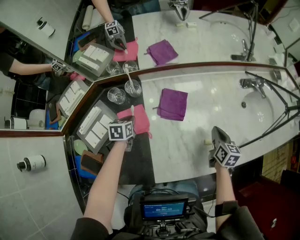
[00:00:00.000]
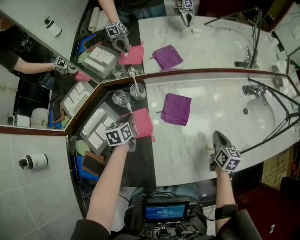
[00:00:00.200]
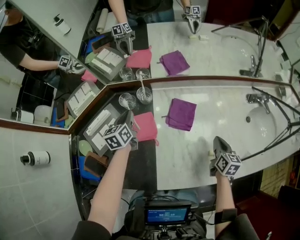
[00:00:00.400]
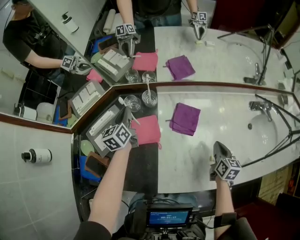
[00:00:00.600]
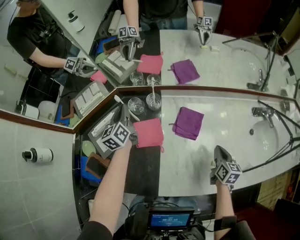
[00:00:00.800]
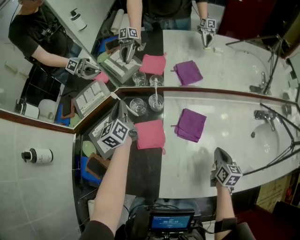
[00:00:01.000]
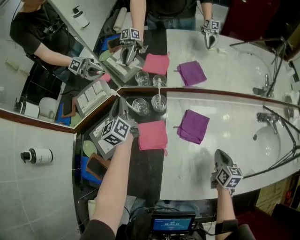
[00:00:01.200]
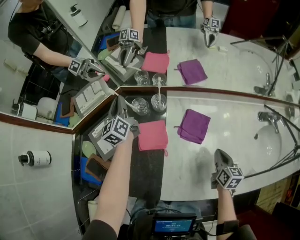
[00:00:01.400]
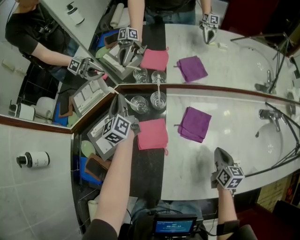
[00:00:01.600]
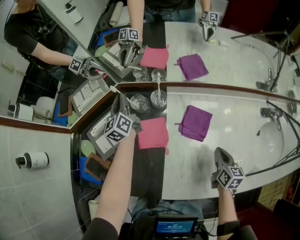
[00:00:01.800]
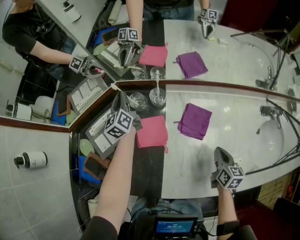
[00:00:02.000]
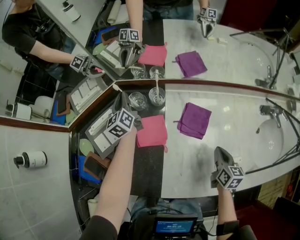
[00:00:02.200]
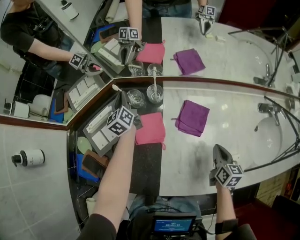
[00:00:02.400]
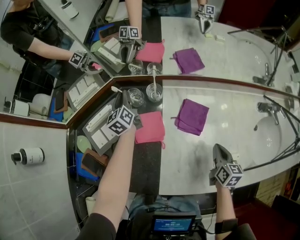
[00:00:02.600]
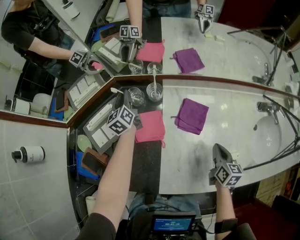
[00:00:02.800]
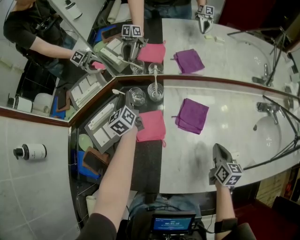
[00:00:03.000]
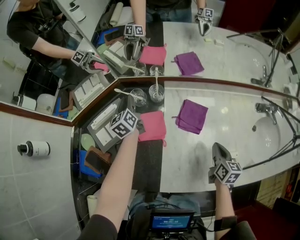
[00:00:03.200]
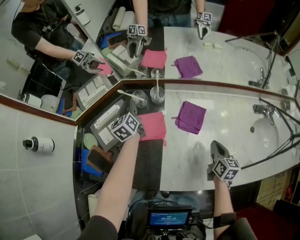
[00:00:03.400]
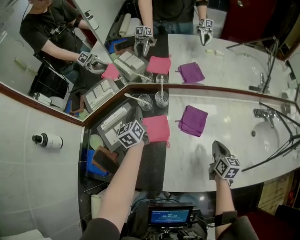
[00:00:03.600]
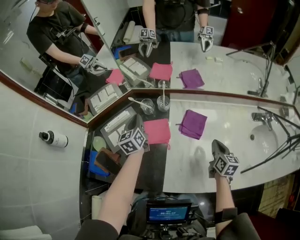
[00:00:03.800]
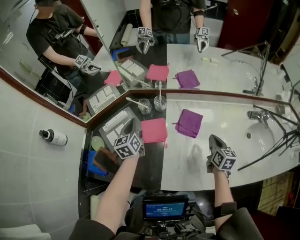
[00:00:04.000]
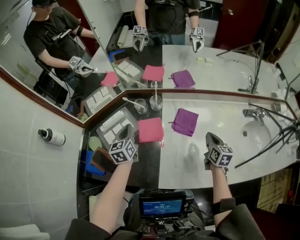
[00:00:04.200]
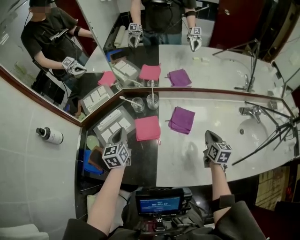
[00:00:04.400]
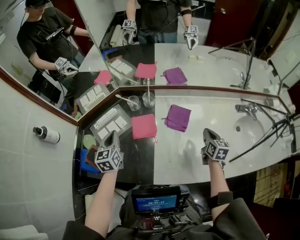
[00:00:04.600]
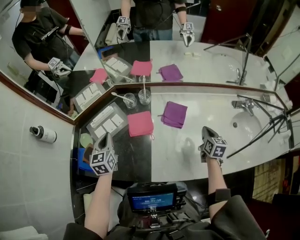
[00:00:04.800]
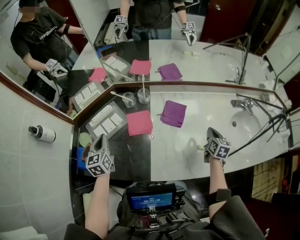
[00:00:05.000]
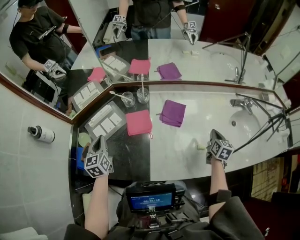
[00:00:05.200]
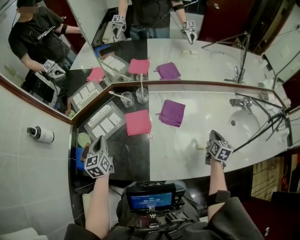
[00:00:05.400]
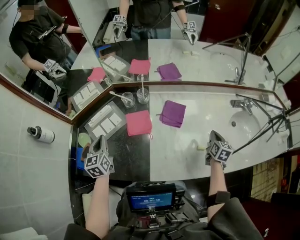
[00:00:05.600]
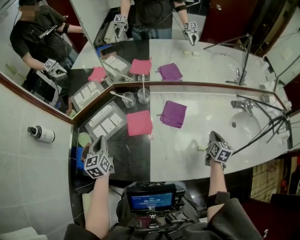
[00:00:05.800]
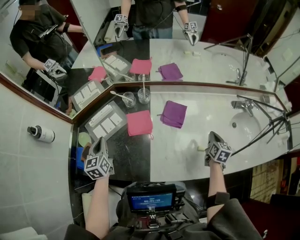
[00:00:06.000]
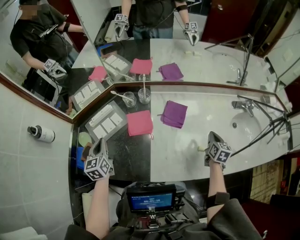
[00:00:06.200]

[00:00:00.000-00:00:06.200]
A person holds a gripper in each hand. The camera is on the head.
00:00:00.000 to 00:00:01.600: The right gripper moves approximately 10 cm; the left gripper ends up approximately 25 cm from where it was, and points its fingers approximately 50 degrees further upward.
00:00:01.600 to 00:00:03.200: The left gripper heads downward, covering about 5 cm, and opens.
00:00:03.200 to 00:00:04.600: The left gripper goes some 25 cm backward and upward, swivels about 20 degrees, and closes, while the right gripper shifts some 5 cm upward.
00:00:04.600 to 00:00:06.200: The right gripper goes approximately 5 cm to the right, while the left gripper shifts by some 5 cm.

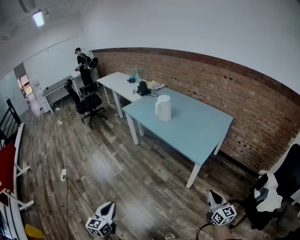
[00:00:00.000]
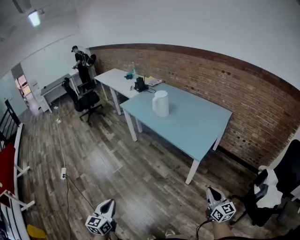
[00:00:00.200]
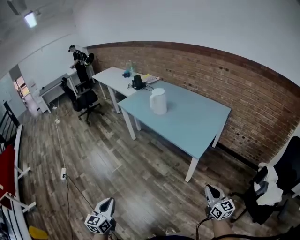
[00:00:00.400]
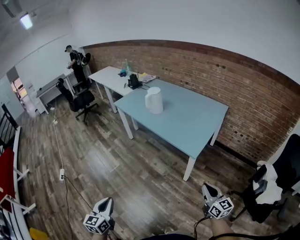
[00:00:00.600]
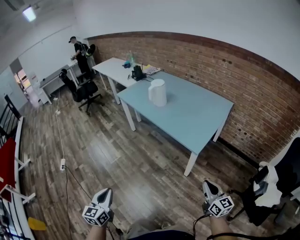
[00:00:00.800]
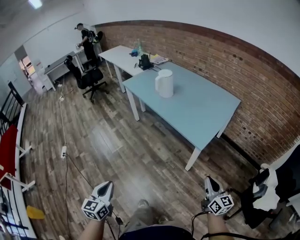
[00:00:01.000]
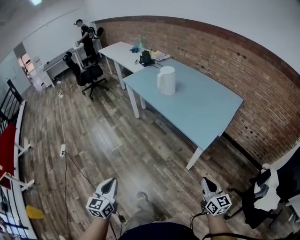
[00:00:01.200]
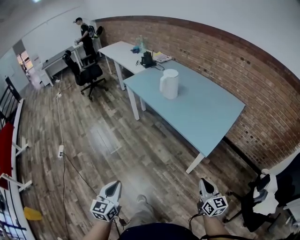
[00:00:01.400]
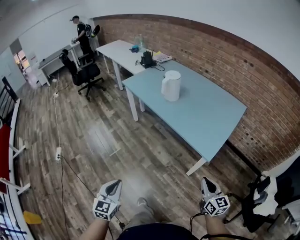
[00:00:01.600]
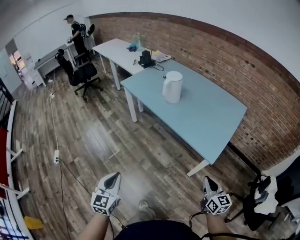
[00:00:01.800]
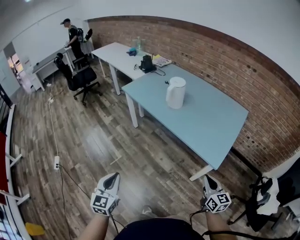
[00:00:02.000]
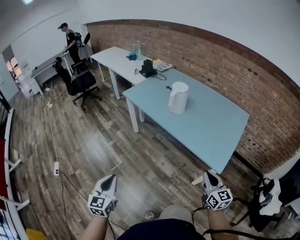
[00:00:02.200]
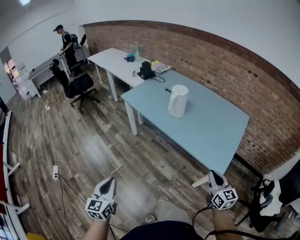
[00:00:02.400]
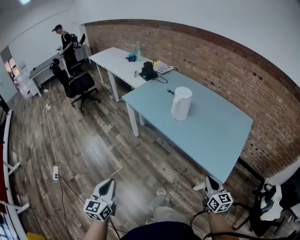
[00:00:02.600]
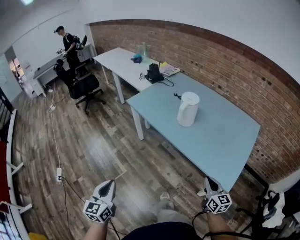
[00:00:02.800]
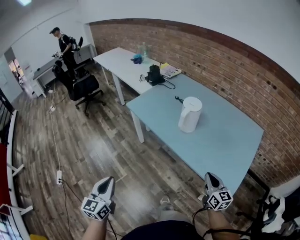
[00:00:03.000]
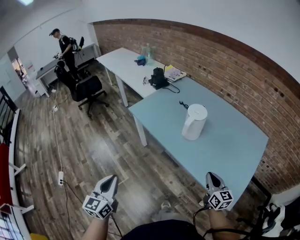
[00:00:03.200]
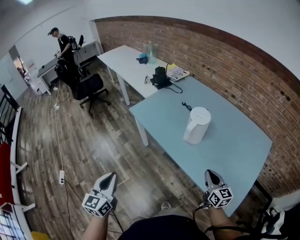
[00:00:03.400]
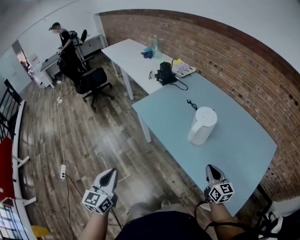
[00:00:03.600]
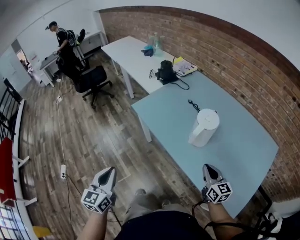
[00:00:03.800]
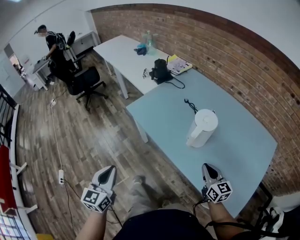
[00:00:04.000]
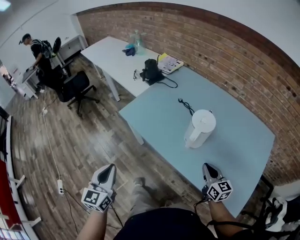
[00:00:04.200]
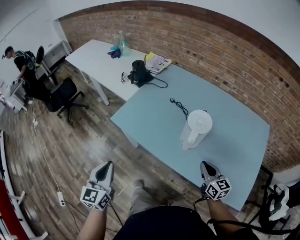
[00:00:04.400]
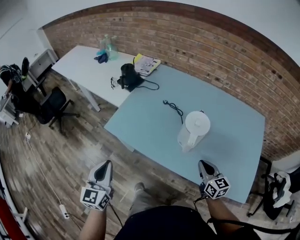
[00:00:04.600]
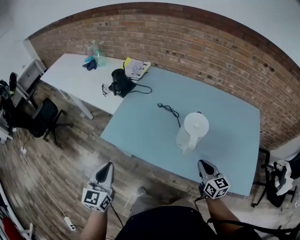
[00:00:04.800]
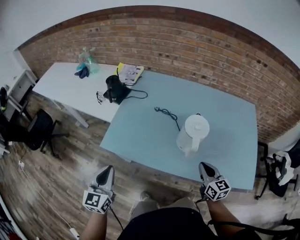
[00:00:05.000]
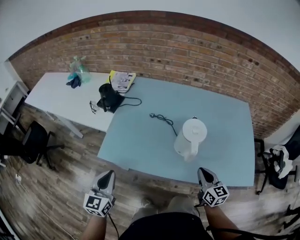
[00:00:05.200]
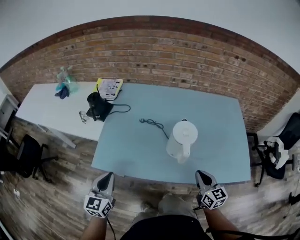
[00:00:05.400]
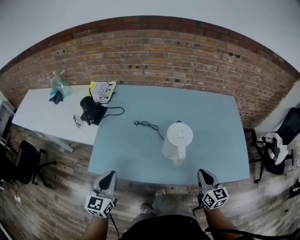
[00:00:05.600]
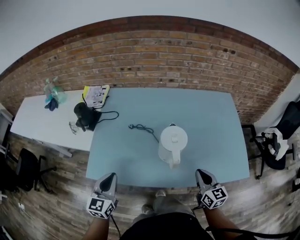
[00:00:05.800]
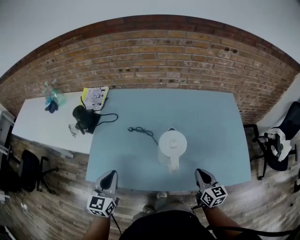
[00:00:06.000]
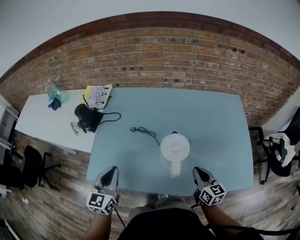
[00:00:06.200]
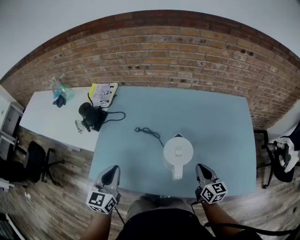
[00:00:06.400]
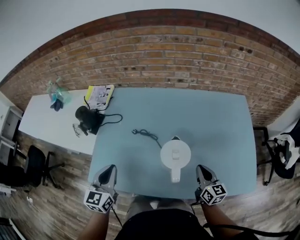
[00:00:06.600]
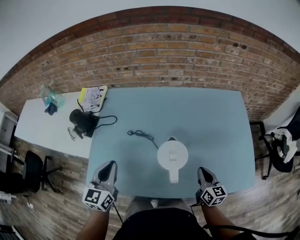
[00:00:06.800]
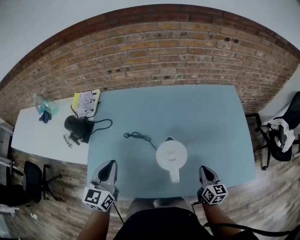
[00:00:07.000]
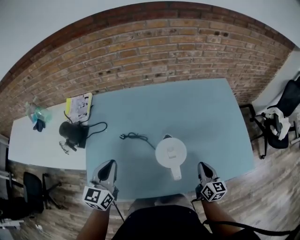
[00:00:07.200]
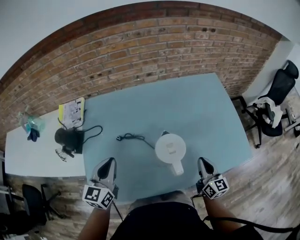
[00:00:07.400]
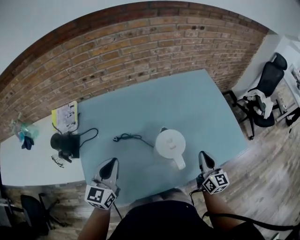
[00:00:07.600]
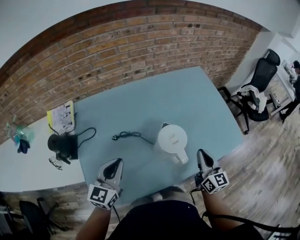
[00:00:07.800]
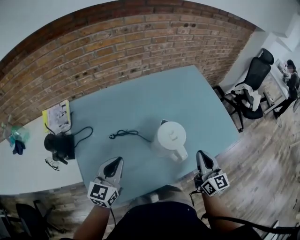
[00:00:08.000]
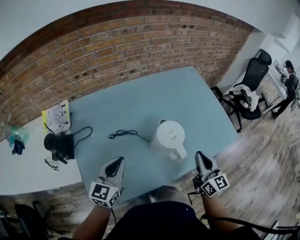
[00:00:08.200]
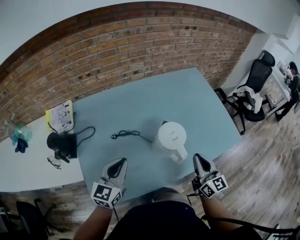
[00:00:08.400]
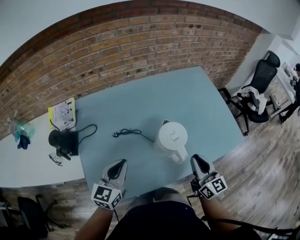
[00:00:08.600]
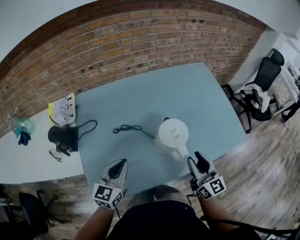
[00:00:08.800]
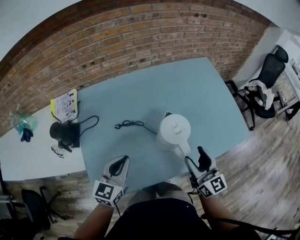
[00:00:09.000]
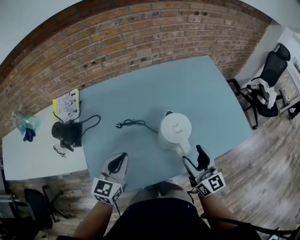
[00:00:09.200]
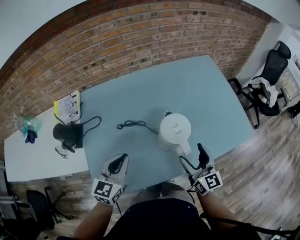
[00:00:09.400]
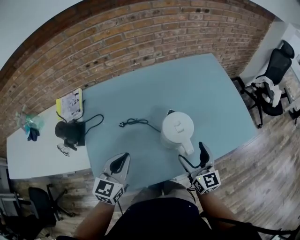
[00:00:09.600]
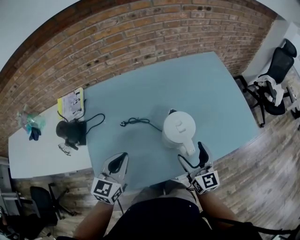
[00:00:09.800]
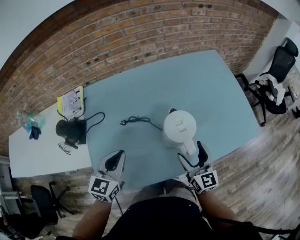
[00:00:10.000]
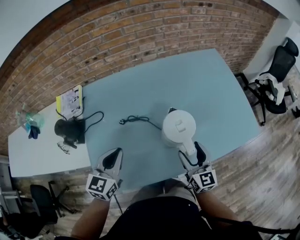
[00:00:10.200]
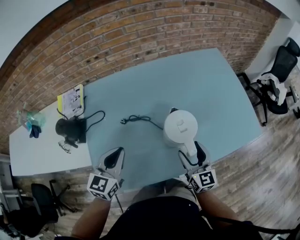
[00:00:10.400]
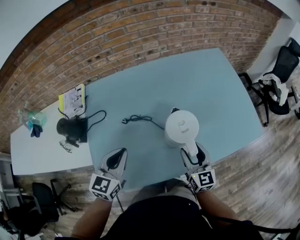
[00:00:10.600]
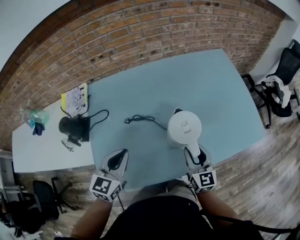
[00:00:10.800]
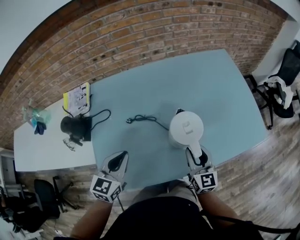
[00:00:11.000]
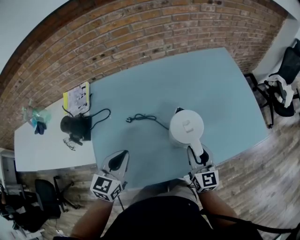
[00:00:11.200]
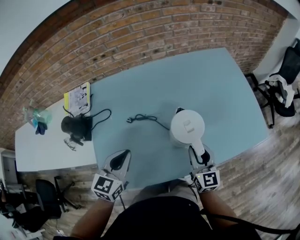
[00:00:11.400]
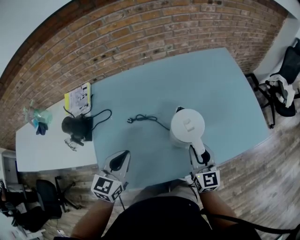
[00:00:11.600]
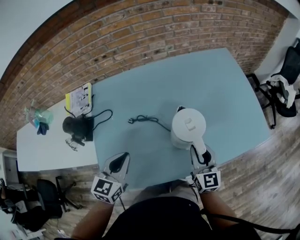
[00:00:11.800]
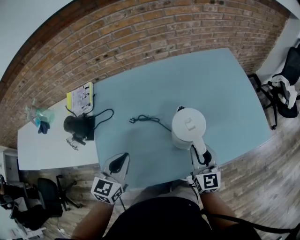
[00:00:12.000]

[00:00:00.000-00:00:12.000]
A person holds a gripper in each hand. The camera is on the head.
00:00:00.000 to 00:00:01.600: Both grippers move forward, roughly 15 cm.
00:00:01.600 to 00:00:03.000: The right gripper goes about 30 cm forward. Meanwhile the left gripper moves forward and to the left, roughly 35 cm.
00:00:03.000 to 00:00:04.400: The two grippers go some 25 cm forward.
00:00:04.400 to 00:00:06.000: The right gripper turns by about 30 degrees. Meanwhile the left gripper shifts by some 25 cm, and changes its angle by approximately 40 degrees.
00:00:06.000 to 00:00:07.600: The left gripper ends up some 15 cm from where it was, and changes its angle by approximately 20 degrees, while the right gripper rotates about 30 degrees.
00:00:07.600 to 00:00:09.000: The right gripper shifts about 10 cm to the left and backward, and opens up. The left gripper ends up some 5 cm from where it was.
00:00:09.000 to 00:00:10.400: The right gripper shifts approximately 10 cm downward.
00:00:10.400 to 00:00:12.000: The right gripper closes.

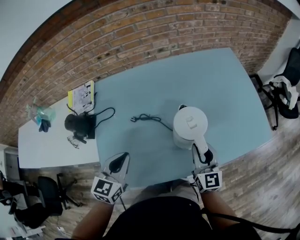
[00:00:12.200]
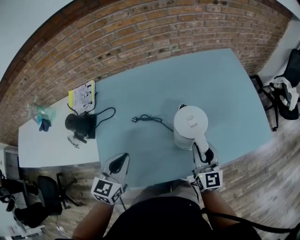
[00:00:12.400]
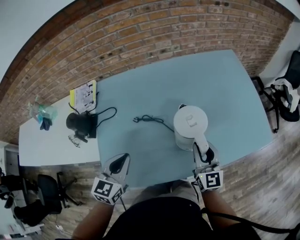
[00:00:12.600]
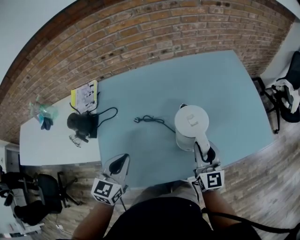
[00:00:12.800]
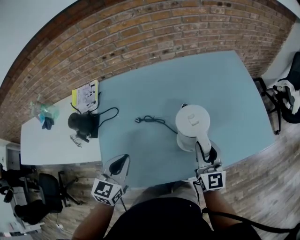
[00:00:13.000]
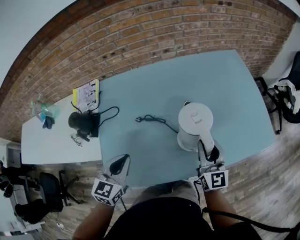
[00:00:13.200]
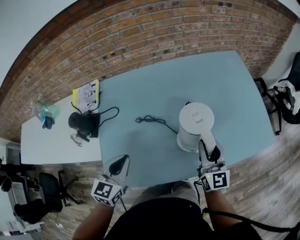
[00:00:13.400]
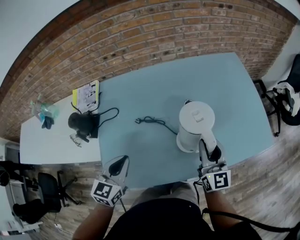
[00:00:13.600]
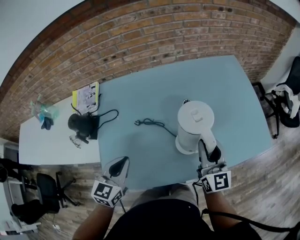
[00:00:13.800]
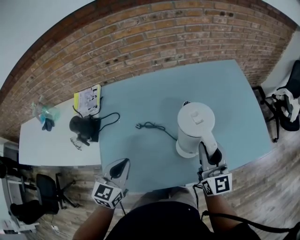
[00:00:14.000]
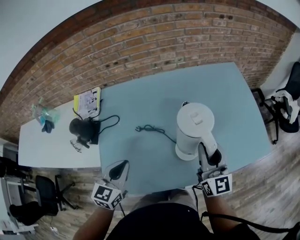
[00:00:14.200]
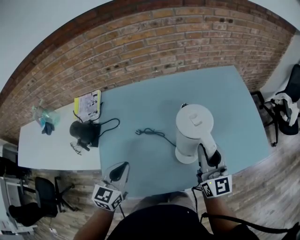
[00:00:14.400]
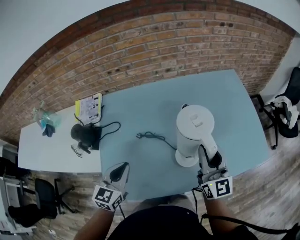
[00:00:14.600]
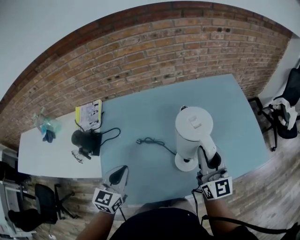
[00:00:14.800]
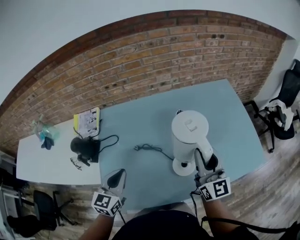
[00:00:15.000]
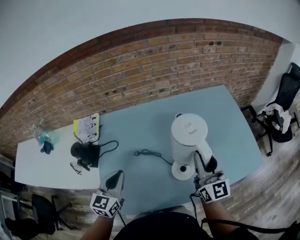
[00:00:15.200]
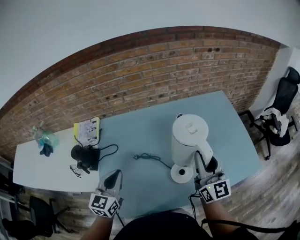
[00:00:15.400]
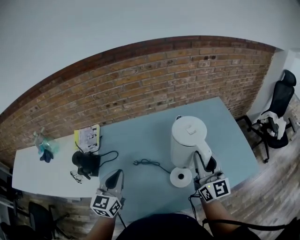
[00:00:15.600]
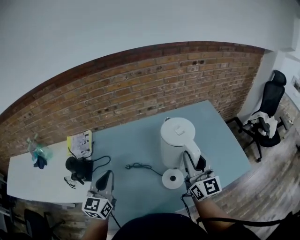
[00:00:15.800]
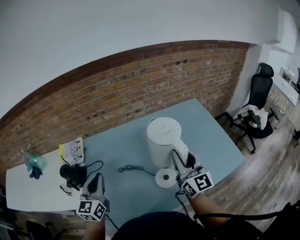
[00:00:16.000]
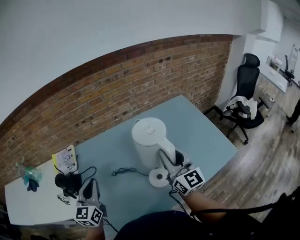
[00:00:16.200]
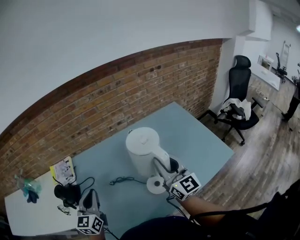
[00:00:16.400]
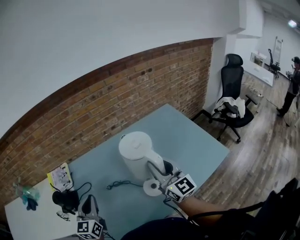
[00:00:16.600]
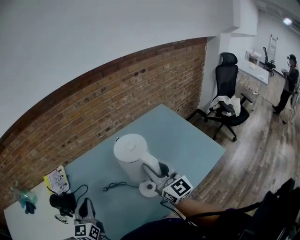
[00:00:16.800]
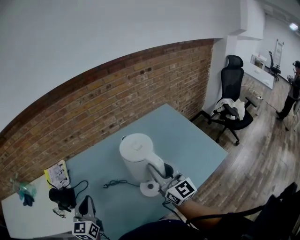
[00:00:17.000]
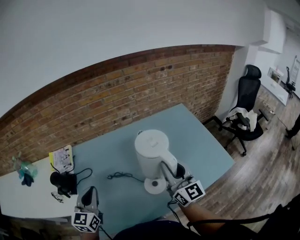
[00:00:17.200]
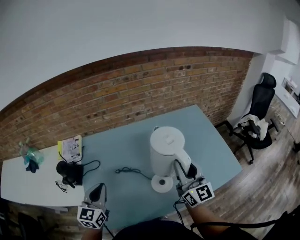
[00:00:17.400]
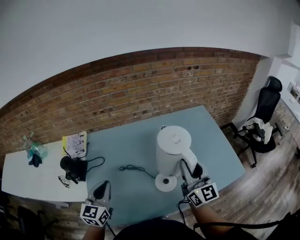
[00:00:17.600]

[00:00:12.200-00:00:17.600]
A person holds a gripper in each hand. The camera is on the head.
00:00:12.200 to 00:00:13.600: The right gripper moves upward, approximately 5 cm.
00:00:13.600 to 00:00:15.000: The right gripper shifts approximately 10 cm upward. The left gripper moves roughly 5 cm.
00:00:15.000 to 00:00:16.200: Both grippers travel together upward, approximately 5 cm.
00:00:16.200 to 00:00:17.600: The left gripper shifts by some 5 cm.
